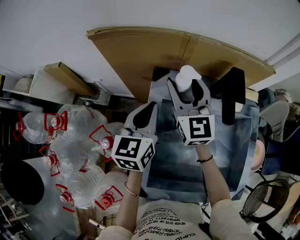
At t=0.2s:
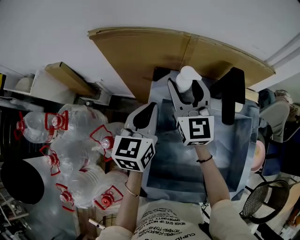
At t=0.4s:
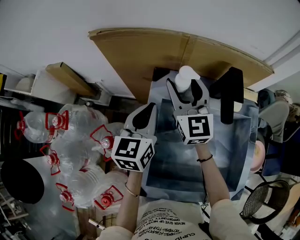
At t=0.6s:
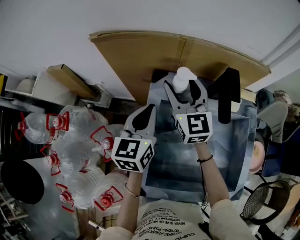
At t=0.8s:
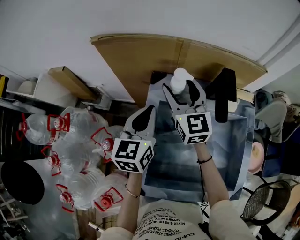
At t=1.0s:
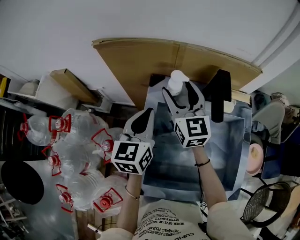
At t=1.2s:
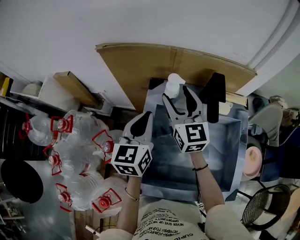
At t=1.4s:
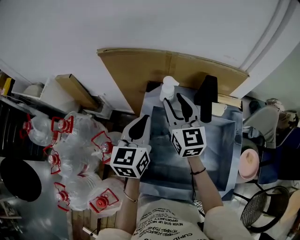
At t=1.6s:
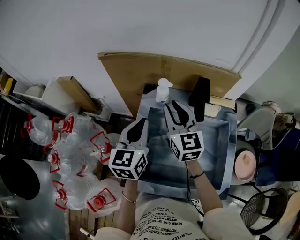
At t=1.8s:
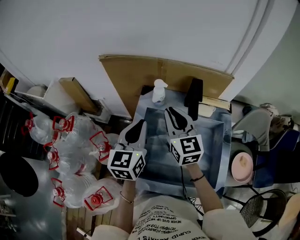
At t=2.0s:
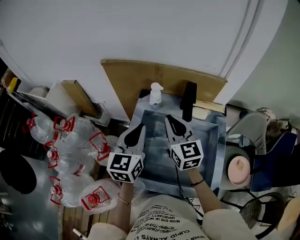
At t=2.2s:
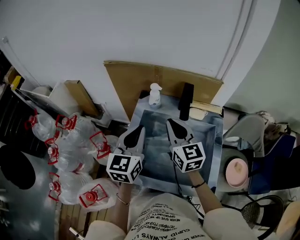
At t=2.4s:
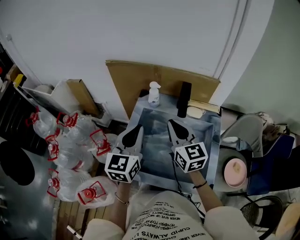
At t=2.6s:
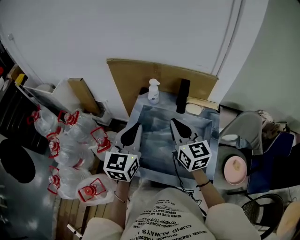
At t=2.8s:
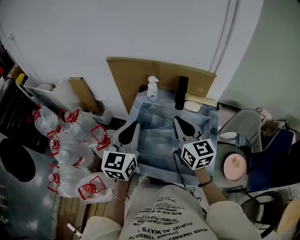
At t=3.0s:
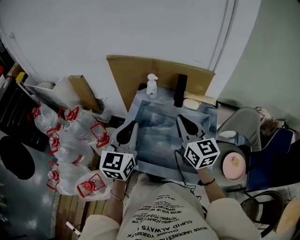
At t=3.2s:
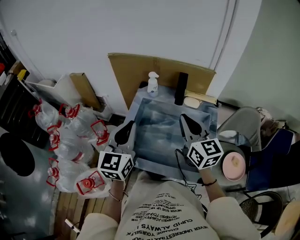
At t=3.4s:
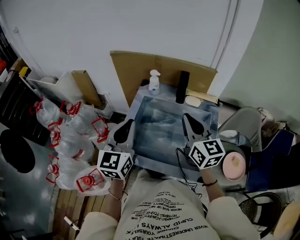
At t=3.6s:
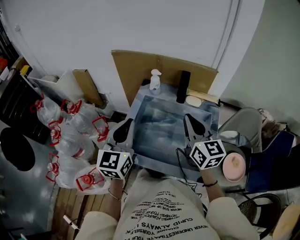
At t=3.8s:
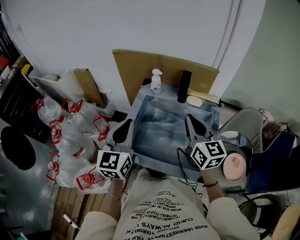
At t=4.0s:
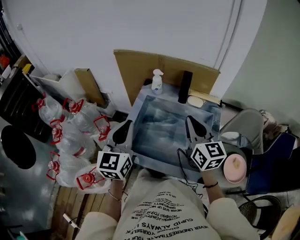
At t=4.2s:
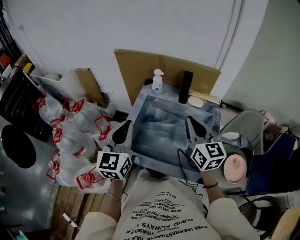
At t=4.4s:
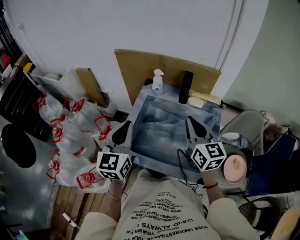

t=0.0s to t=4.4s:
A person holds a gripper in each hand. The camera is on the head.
t=0.0s to t=1.4s: The right gripper moves backward, some 5 cm, while the left gripper is displaced upward and backward by about 5 cm.
t=1.4s to t=3.0s: The right gripper travels backward and to the right by some 20 cm, and closes its fingers; the left gripper travels backward and upward by approximately 20 cm.
t=3.0s to t=4.4s: The grippers move only a little.

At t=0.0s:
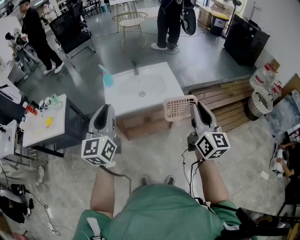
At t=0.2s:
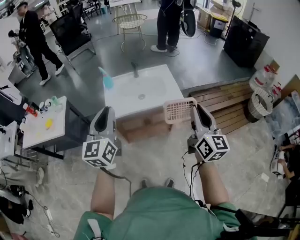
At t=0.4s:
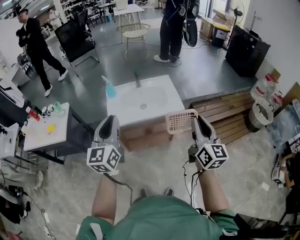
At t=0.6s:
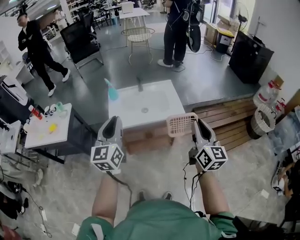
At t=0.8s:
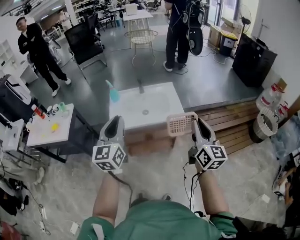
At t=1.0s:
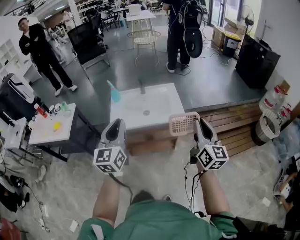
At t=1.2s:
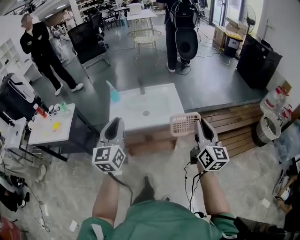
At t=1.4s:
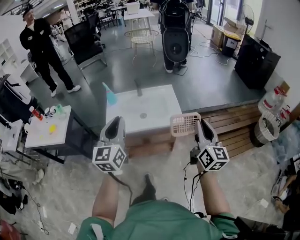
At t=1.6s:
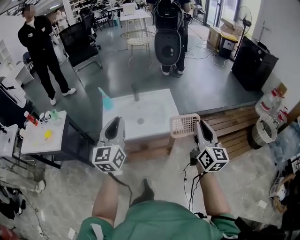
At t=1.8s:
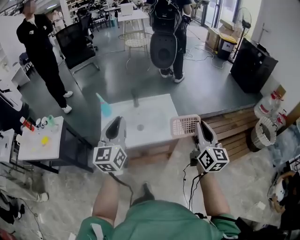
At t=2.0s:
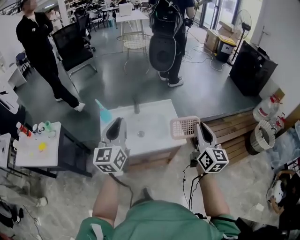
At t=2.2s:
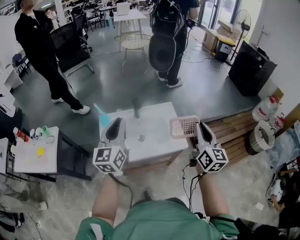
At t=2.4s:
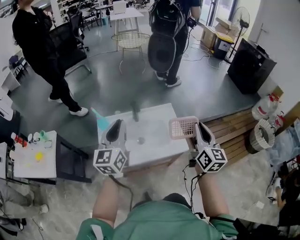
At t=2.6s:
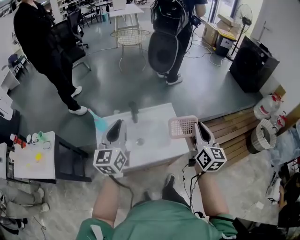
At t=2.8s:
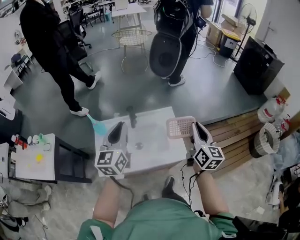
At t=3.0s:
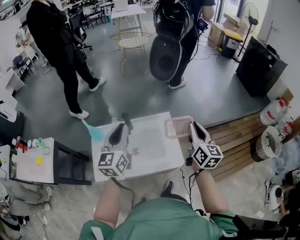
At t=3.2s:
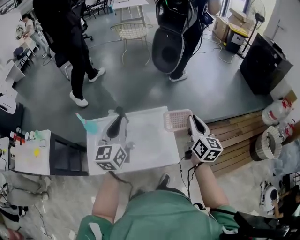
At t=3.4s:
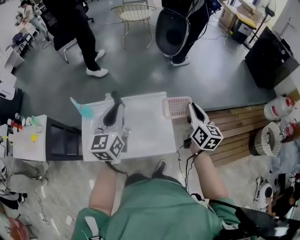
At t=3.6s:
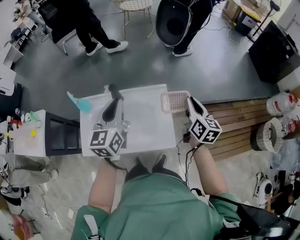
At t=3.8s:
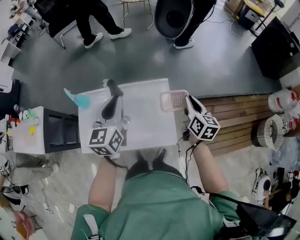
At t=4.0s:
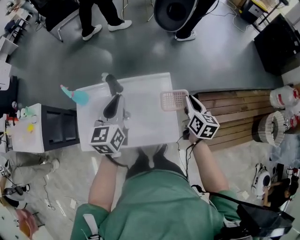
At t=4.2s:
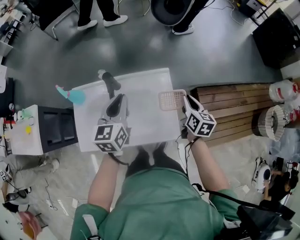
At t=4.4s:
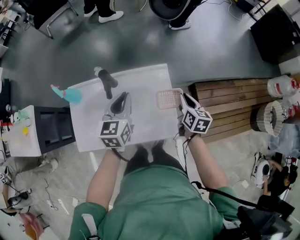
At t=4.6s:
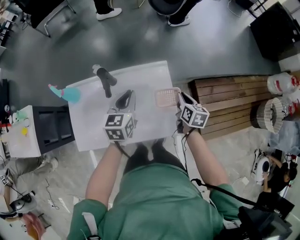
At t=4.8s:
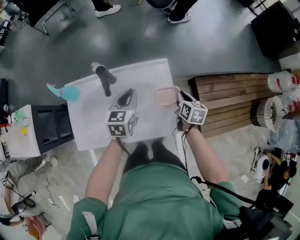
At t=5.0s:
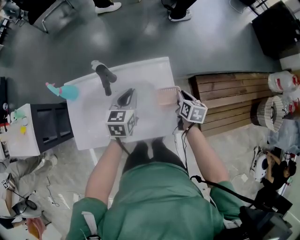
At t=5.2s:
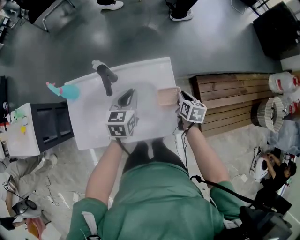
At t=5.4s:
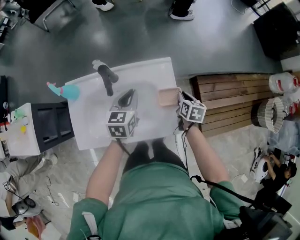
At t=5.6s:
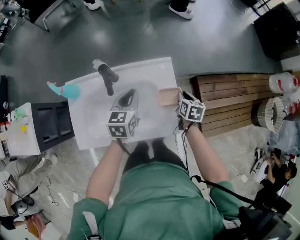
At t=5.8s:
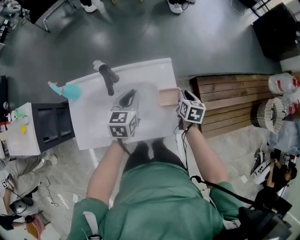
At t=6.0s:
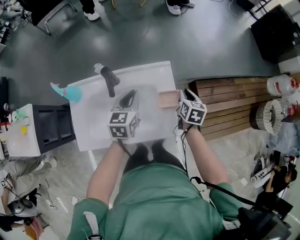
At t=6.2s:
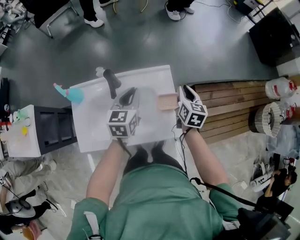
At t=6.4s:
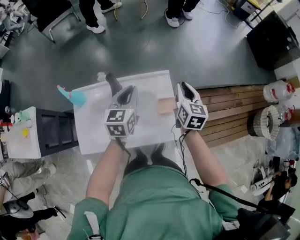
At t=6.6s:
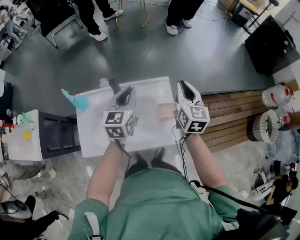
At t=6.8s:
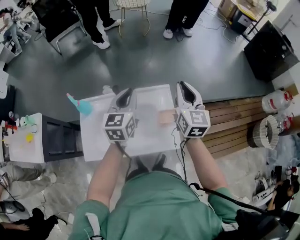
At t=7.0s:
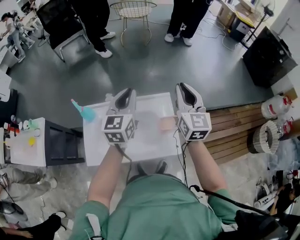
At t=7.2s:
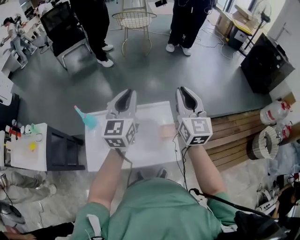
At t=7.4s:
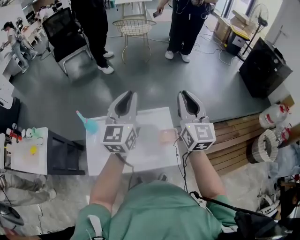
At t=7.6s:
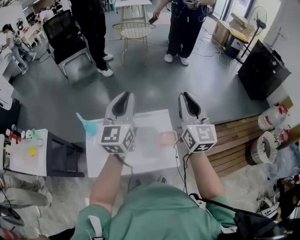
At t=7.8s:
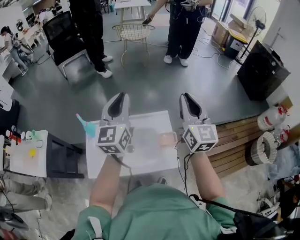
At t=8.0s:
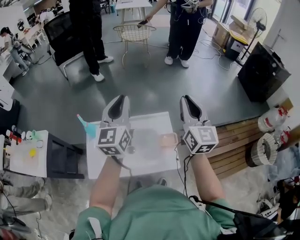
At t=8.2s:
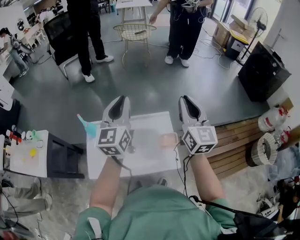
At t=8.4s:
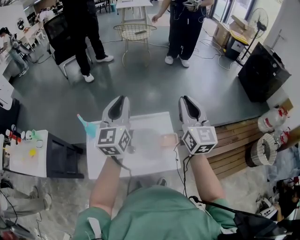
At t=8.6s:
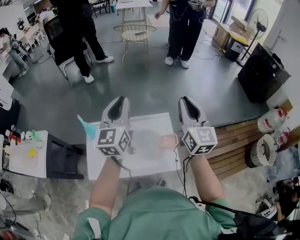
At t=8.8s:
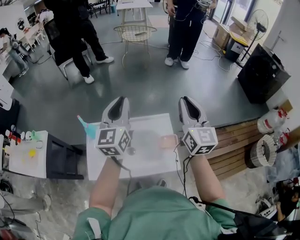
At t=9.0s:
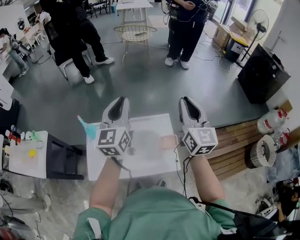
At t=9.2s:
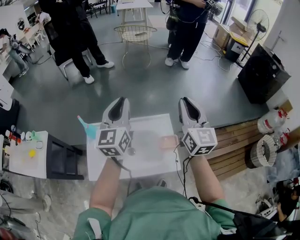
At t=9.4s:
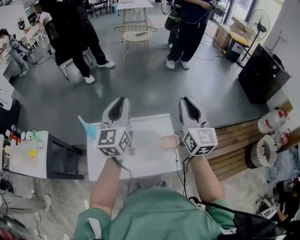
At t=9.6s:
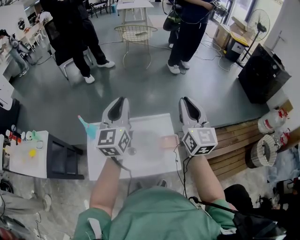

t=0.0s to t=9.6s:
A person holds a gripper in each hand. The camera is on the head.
t=0.0s to t=1.6s: Both grippers move forward and to the right, some 15 cm.
t=1.6s to t=3.2s: The two grippers go some 40 cm forward.
t=3.2s to t=4.8s: The grippers both shift downward by approximately 30 cm. The left gripper swivels about 30 degrees; the right gripper tilts its fingers approximately 30 degrees downward.
t=4.8s to t=6.4s: The right gripper shifts about 15 cm upward, and changes its angle by approximately 30 degrees; the left gripper heads upward, covering about 10 cm.
t=6.4s to t=8.0s: Both grippers move upward, roughly 25 cm. The right gripper rotates approximately 30 degrees, while the left gripper changes its angle by about 30 degrees.
t=8.0s to t=9.6s: The grippers stay close to where they were, moving slightly.

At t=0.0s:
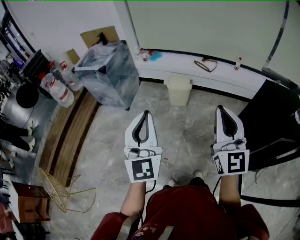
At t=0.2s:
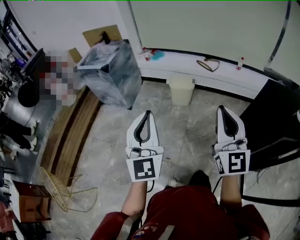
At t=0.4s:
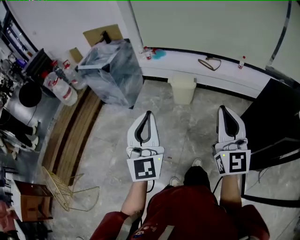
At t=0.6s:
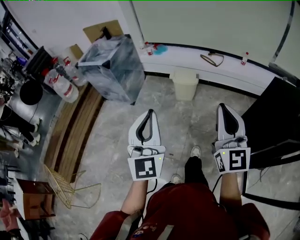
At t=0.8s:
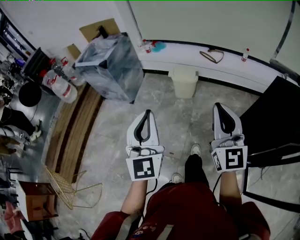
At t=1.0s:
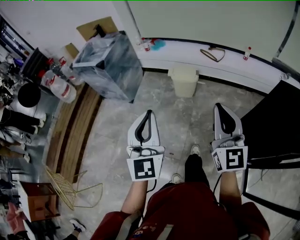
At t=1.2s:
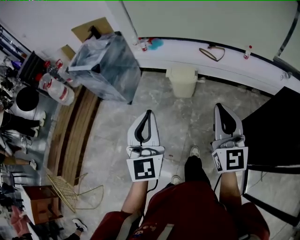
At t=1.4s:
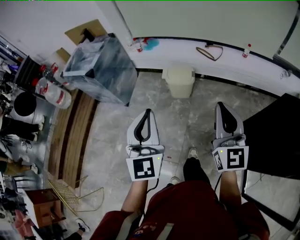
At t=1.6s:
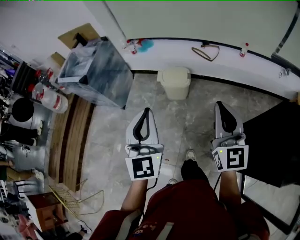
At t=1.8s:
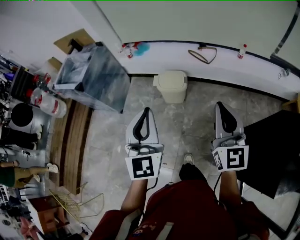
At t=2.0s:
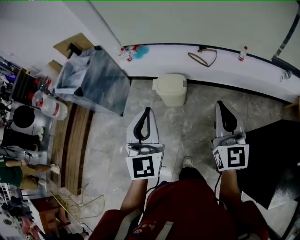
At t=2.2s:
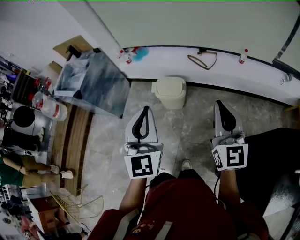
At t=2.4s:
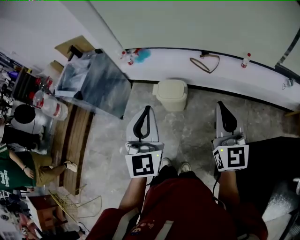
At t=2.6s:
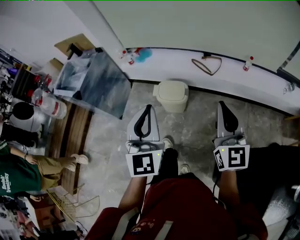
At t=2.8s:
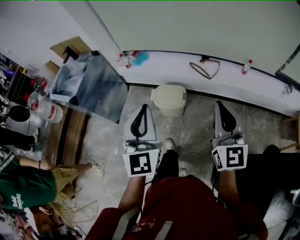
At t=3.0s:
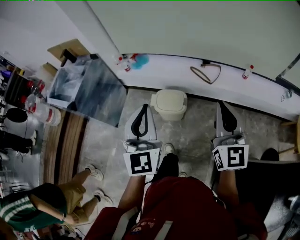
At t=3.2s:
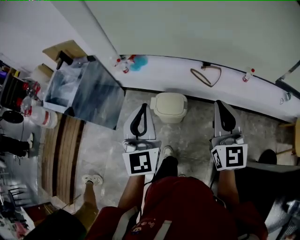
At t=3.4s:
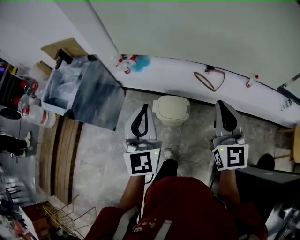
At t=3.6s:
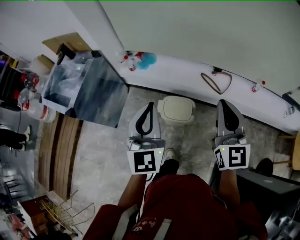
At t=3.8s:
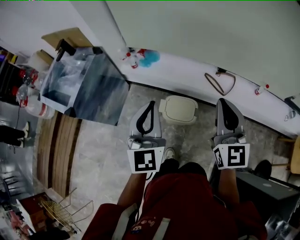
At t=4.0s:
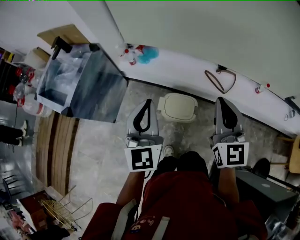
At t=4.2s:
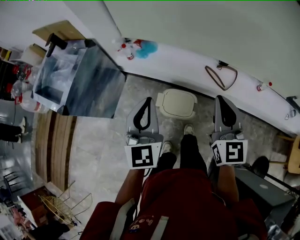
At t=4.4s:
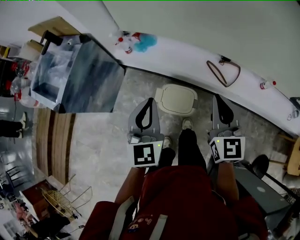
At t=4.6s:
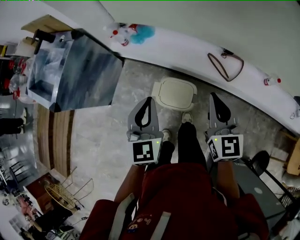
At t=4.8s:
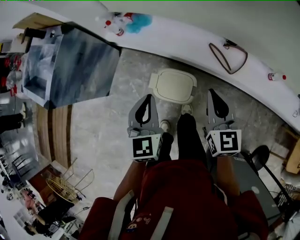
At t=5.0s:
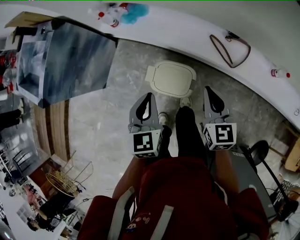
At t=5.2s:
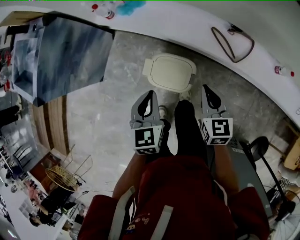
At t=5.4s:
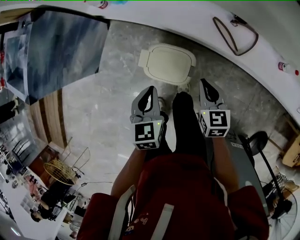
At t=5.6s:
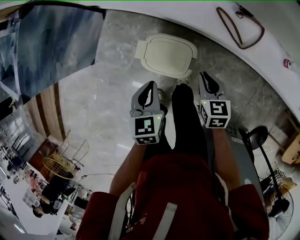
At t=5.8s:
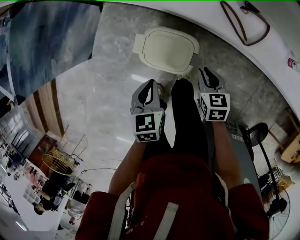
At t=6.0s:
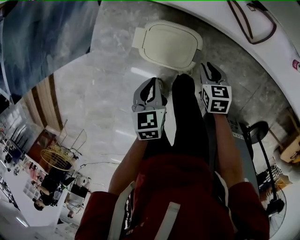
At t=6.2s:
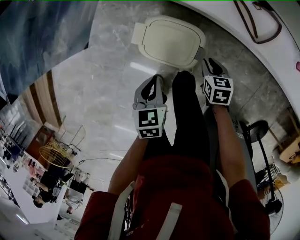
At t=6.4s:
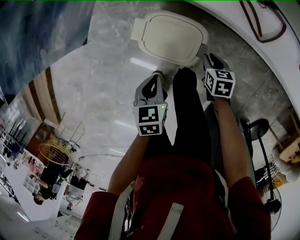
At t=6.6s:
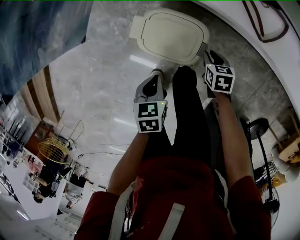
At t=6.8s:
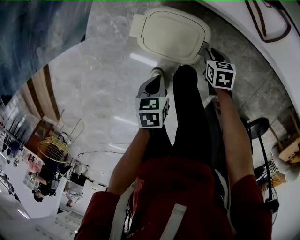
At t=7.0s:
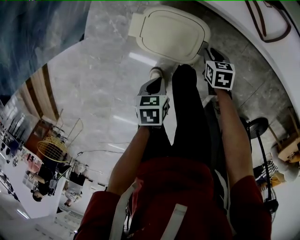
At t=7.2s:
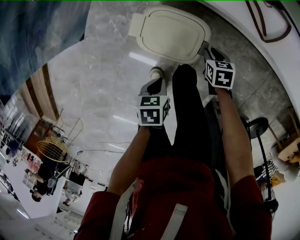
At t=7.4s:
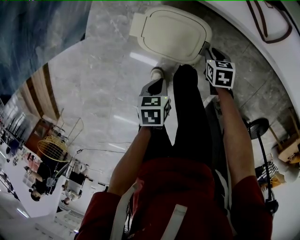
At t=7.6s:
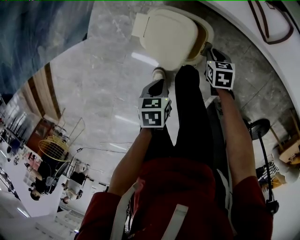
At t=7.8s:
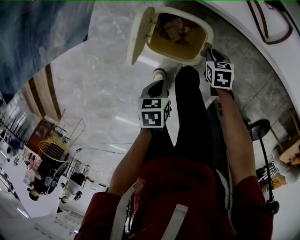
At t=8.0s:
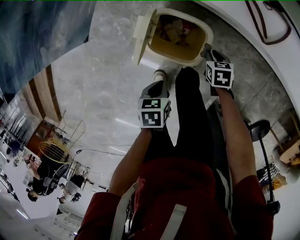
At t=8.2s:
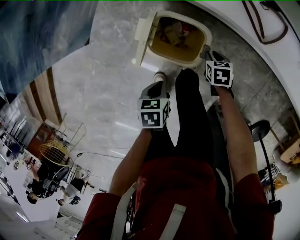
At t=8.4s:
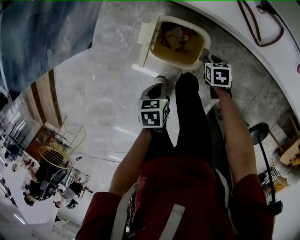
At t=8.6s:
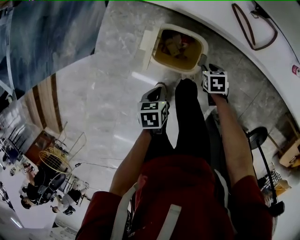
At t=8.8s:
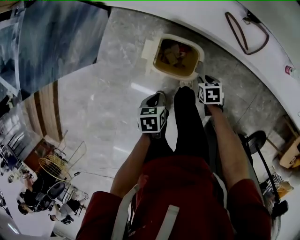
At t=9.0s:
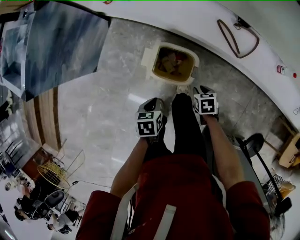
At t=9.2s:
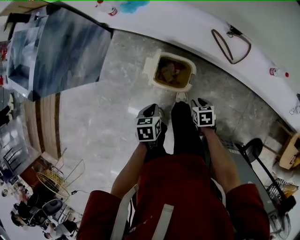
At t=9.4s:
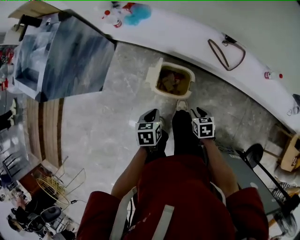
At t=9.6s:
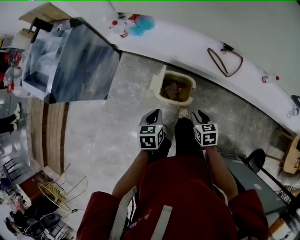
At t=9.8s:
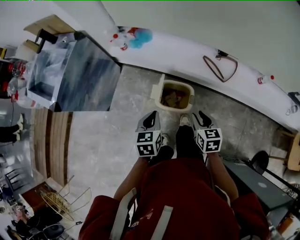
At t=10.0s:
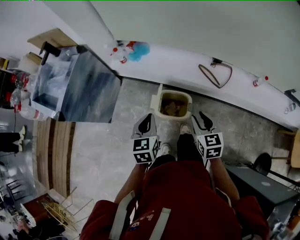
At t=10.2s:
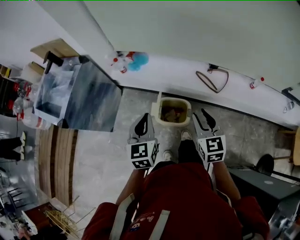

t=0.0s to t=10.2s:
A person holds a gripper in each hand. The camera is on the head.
t=0.0s to t=1.4s: The right gripper heads forward and downward, covering some 20 cm. Meanwhile the left gripper moves forward, about 20 cm.
t=1.4s to t=3.0s: The grippers both shift forward by about 30 cm.
t=3.0s to t=4.4s: The grippers both shift forward and downward by approximately 30 cm.
t=4.4s to t=5.8s: The grippers both shift downward by some 40 cm. The left gripper angles its fingers downward, by about 40 degrees, while the right gripper tilts its fingers roughly 40 degrees downward.
t=5.8s to t=7.2s: The left gripper travels downward and backward by some 15 cm, and rotates roughly 30 degrees. Meanwhile the right gripper travels downward by about 15 cm.
t=7.2s to t=8.8s: The grippers both shift upward by approximately 5 cm.
t=8.8s to t=10.2s: Both grippers move upward, some 40 cm. The left gripper points its fingers approximately 50 degrees further upward; the right gripper tips its fingers upward by some 50 degrees.
